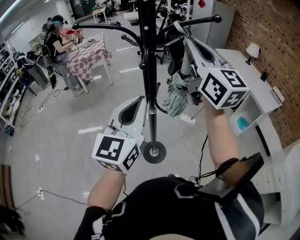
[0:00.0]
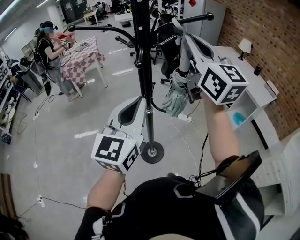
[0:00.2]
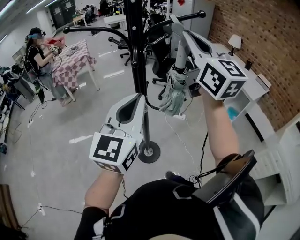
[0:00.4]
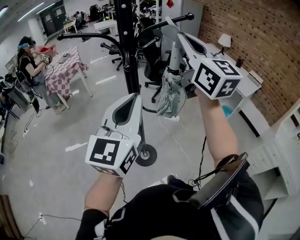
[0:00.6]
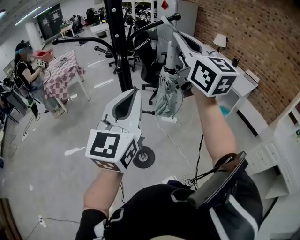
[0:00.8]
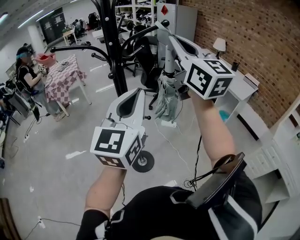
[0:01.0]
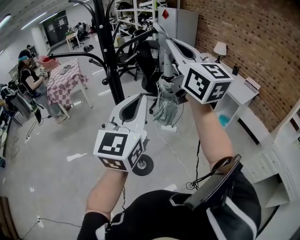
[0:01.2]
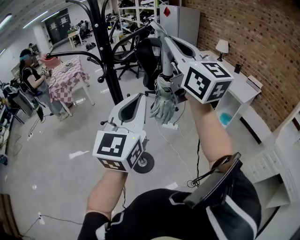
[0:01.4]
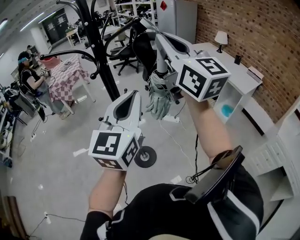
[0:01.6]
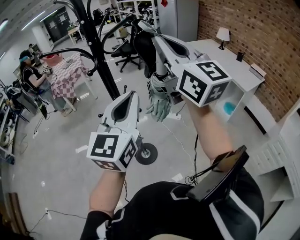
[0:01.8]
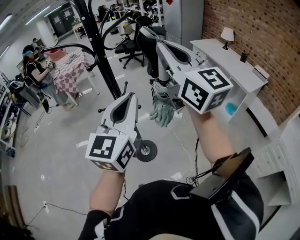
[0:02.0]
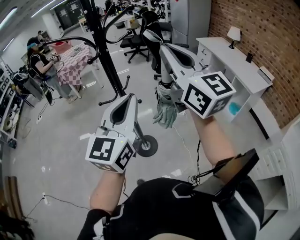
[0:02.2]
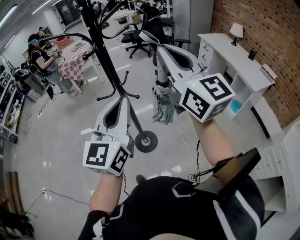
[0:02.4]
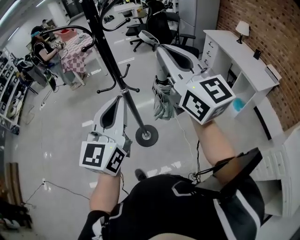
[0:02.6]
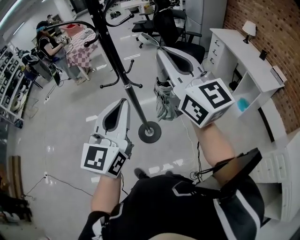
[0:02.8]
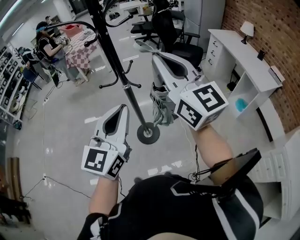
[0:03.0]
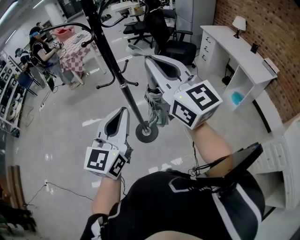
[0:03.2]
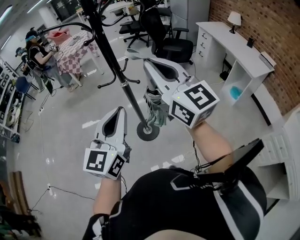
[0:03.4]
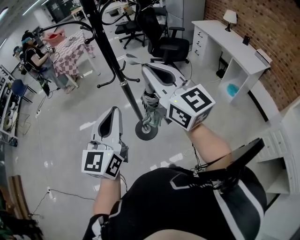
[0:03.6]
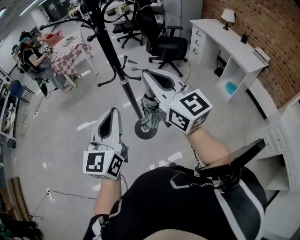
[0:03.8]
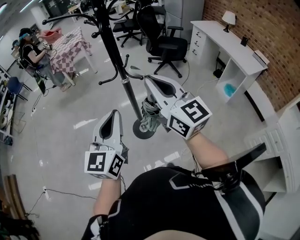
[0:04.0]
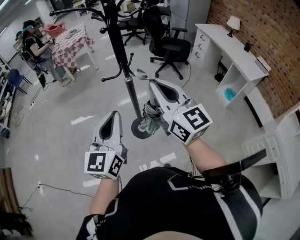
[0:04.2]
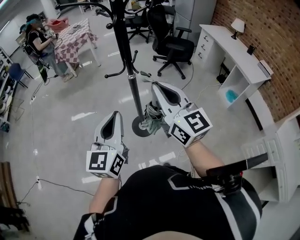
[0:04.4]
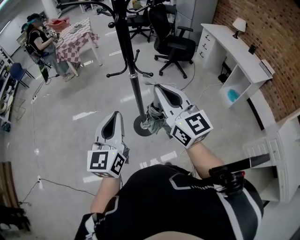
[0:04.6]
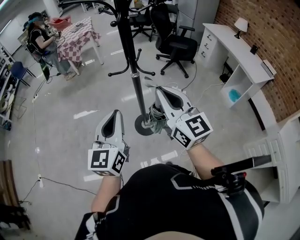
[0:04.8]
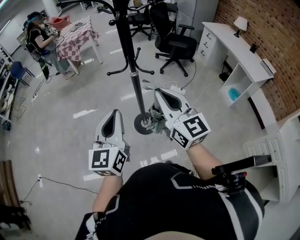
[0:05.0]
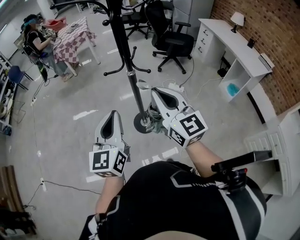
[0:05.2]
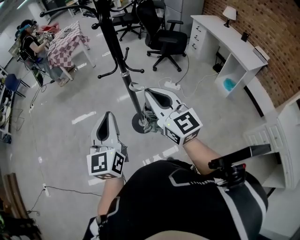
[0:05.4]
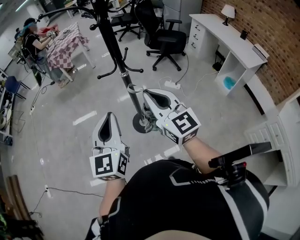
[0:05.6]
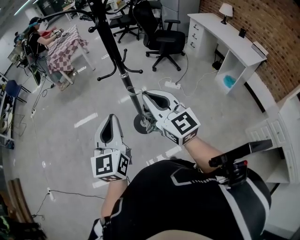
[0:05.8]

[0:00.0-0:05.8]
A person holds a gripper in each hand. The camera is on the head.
0.0 to 1.4 s: The right gripper goes some 15 cm to the right, backward and upward, while the left gripper is displaced to the right by about 15 cm.
1.4 to 2.8 s: The left gripper moves backward and downward, approximately 10 cm, while the right gripper moves downward and backward, roughly 15 cm.
2.8 to 4.4 s: The right gripper is displaced downward and to the left by some 15 cm. The left gripper travels to the left and downward by approximately 15 cm.
4.4 to 5.8 s: The right gripper is displaced downward by roughly 5 cm.

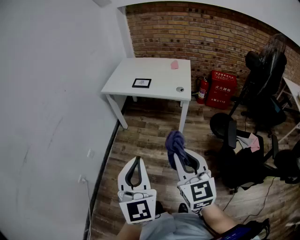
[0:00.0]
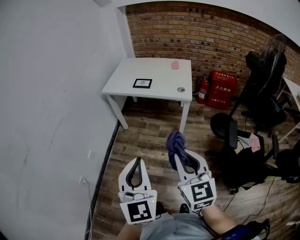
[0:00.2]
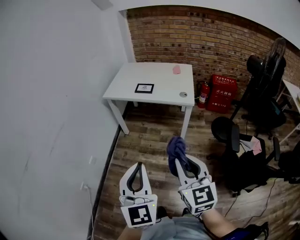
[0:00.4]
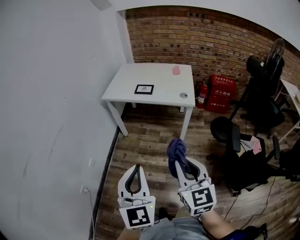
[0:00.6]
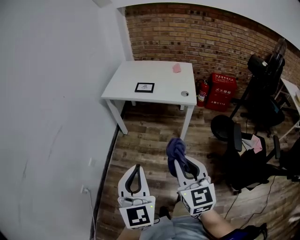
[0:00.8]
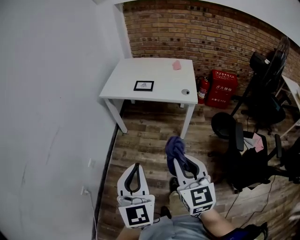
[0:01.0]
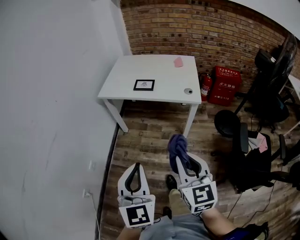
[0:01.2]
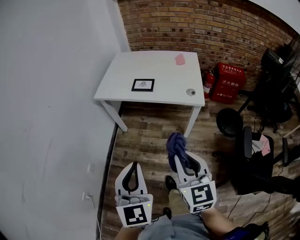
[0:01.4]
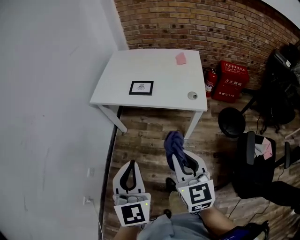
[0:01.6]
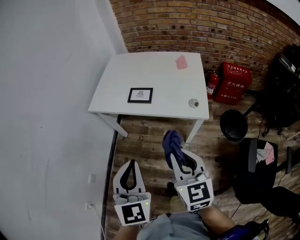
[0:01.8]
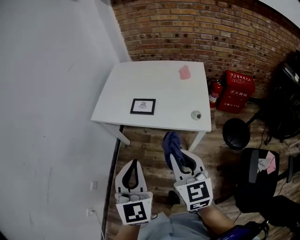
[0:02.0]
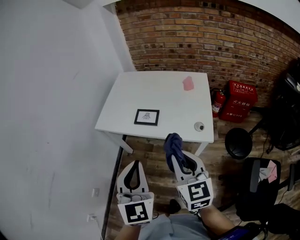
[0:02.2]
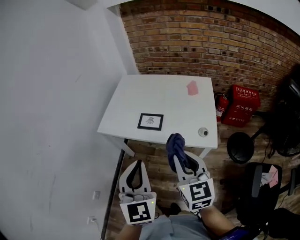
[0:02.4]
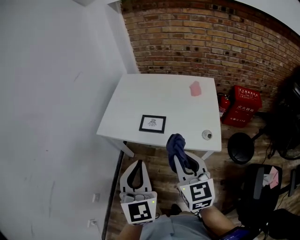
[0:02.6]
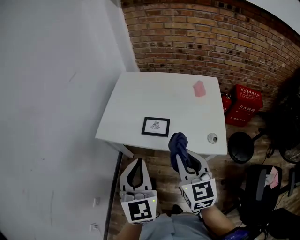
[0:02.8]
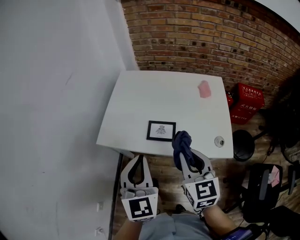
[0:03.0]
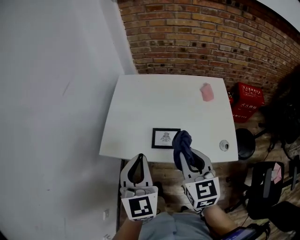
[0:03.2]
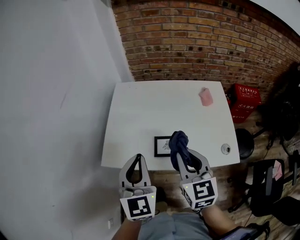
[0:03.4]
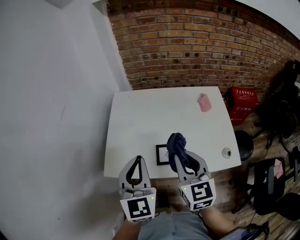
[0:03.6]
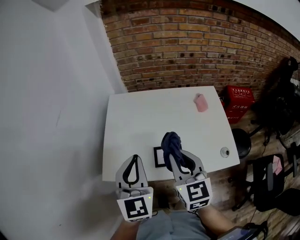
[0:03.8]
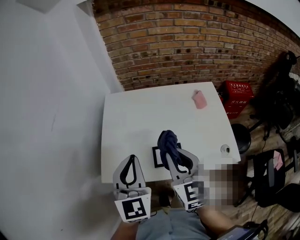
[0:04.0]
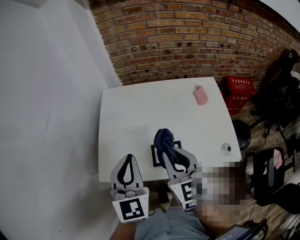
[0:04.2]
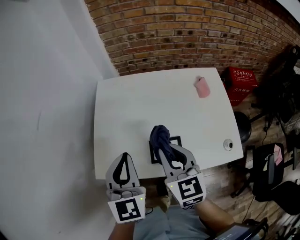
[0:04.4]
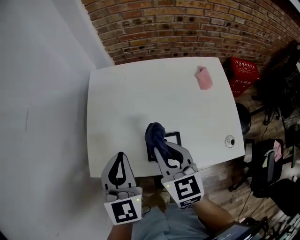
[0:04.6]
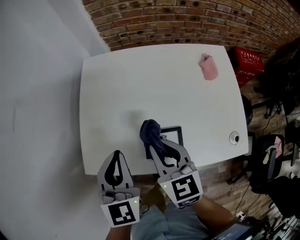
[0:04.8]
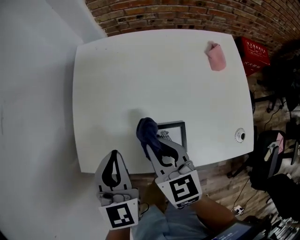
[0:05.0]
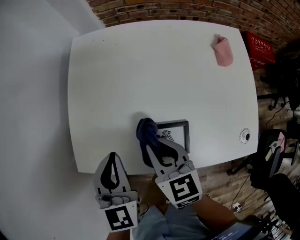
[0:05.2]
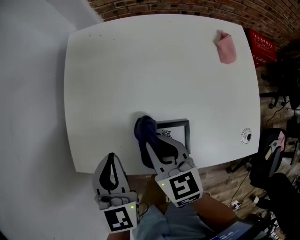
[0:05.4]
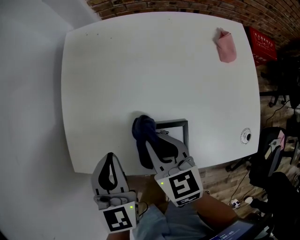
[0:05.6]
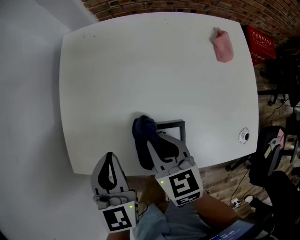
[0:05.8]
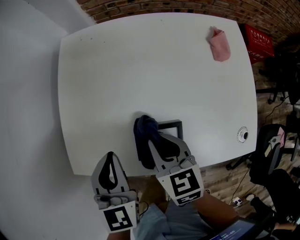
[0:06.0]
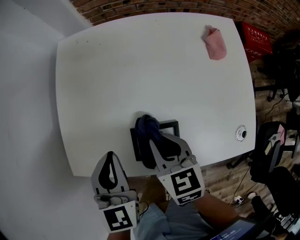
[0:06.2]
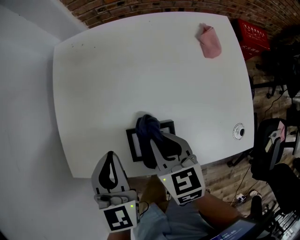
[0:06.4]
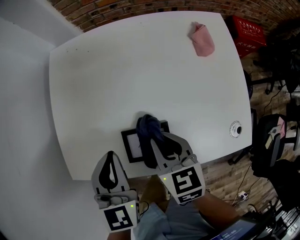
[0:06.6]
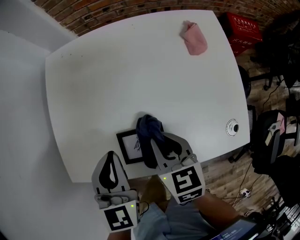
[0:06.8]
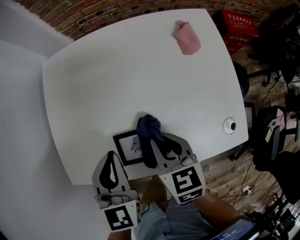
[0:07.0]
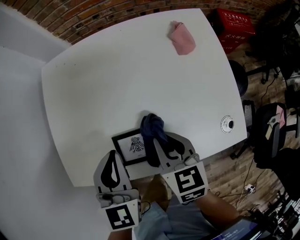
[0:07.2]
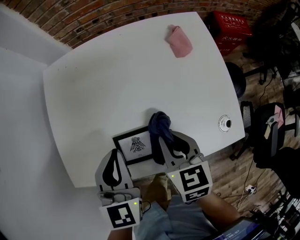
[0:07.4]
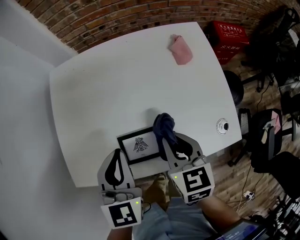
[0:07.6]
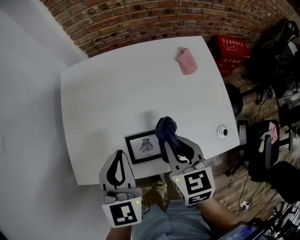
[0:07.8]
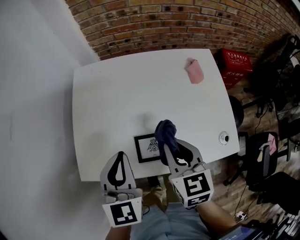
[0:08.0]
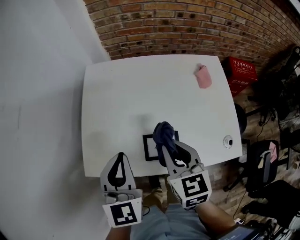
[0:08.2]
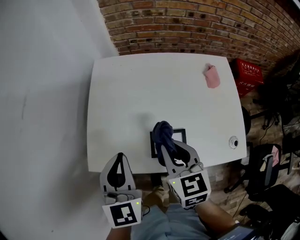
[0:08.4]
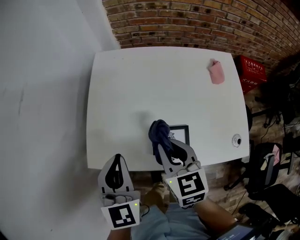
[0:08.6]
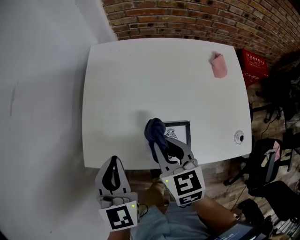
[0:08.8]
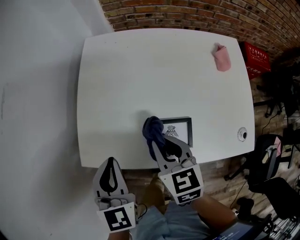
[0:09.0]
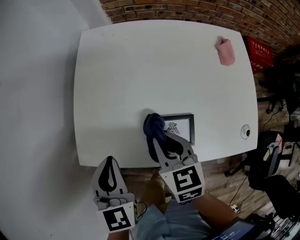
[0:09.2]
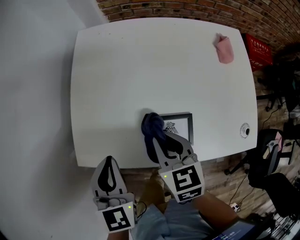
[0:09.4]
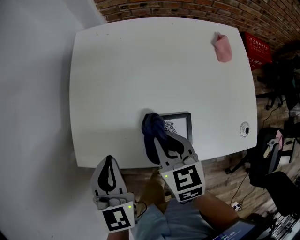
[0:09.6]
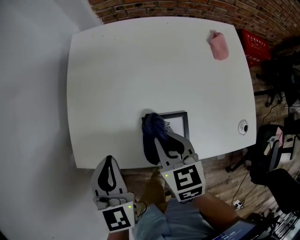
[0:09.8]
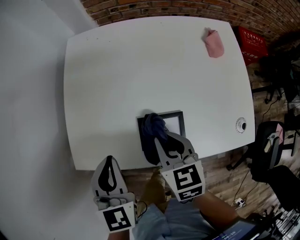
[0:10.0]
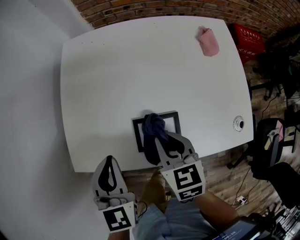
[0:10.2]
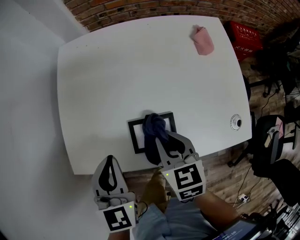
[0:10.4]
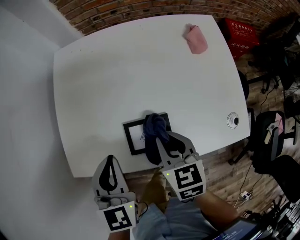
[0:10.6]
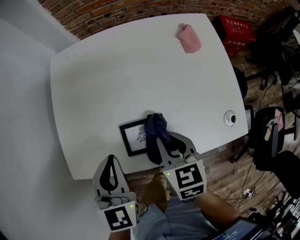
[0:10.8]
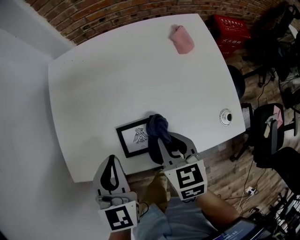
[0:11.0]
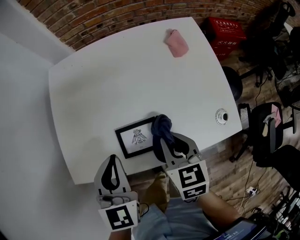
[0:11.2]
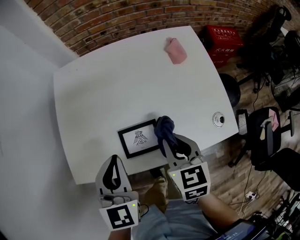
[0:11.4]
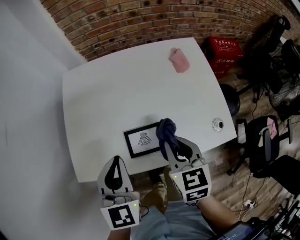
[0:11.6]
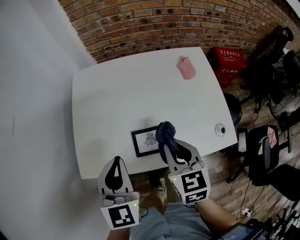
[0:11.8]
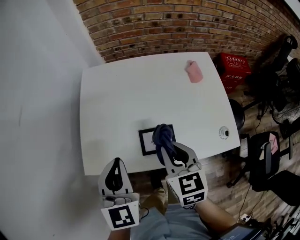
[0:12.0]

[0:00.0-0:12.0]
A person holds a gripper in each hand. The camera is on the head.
0.0 to 1.6 s: Both grippers travel together forward, about 25 cm.
1.6 to 3.0 s: The two grippers go approximately 30 cm forward.
3.0 to 4.4 s: The right gripper moves forward and to the left, approximately 20 cm. The left gripper travels forward by approximately 20 cm.
4.4 to 6.0 s: The two grippers go about 15 cm downward. The right gripper turns by approximately 20 degrees.
6.0 to 7.6 s: Both grippers move to the right, roughly 10 cm.
7.6 to 9.0 s: Both grippers travel together to the left, about 15 cm.
9.0 to 10.4 s: The grippers both shift to the right by approximately 10 cm.
10.4 to 12.0 s: Both grippers travel together upward, roughly 10 cm.

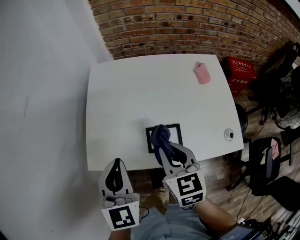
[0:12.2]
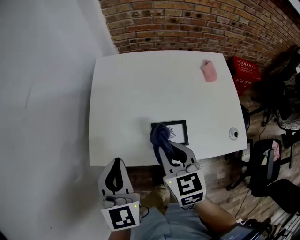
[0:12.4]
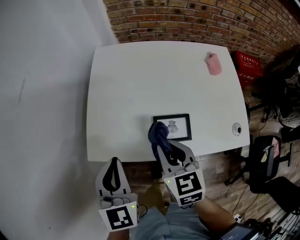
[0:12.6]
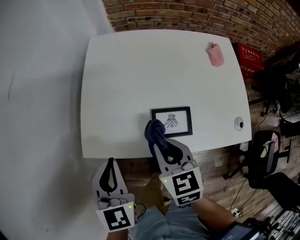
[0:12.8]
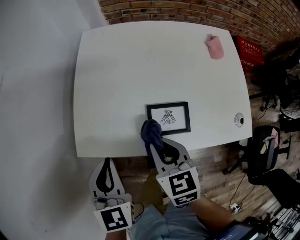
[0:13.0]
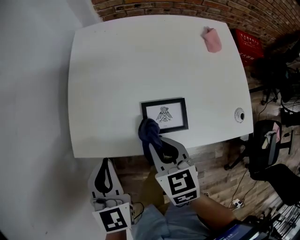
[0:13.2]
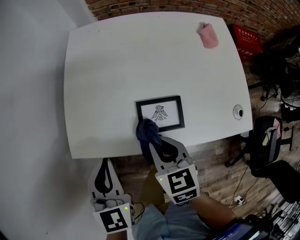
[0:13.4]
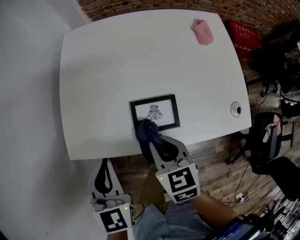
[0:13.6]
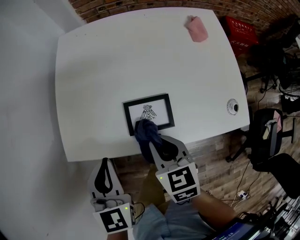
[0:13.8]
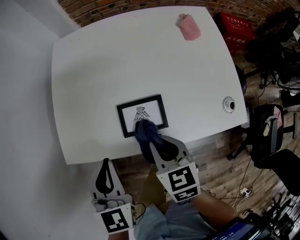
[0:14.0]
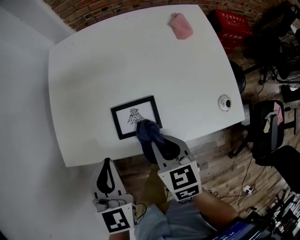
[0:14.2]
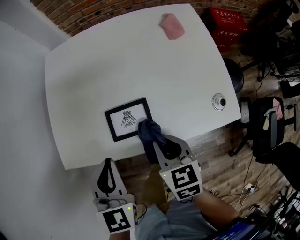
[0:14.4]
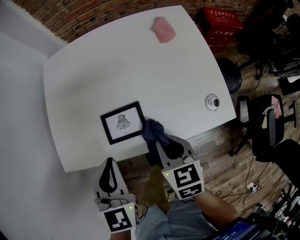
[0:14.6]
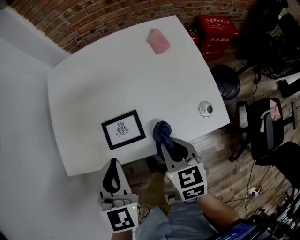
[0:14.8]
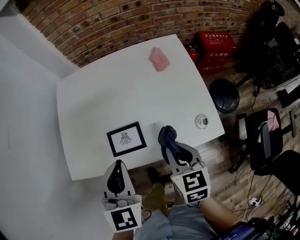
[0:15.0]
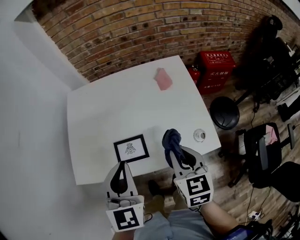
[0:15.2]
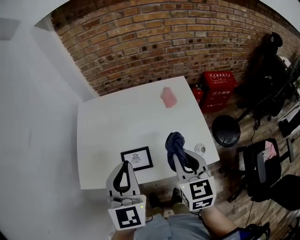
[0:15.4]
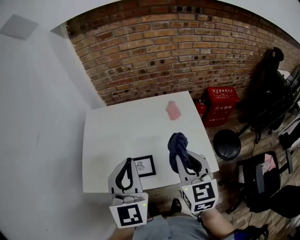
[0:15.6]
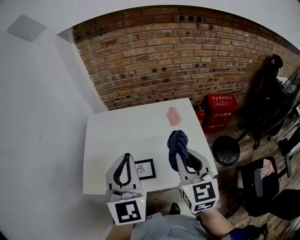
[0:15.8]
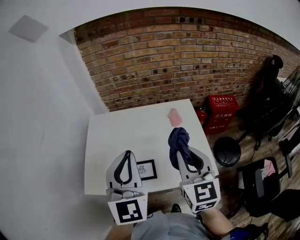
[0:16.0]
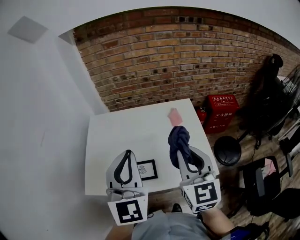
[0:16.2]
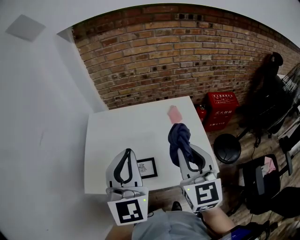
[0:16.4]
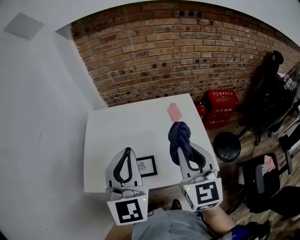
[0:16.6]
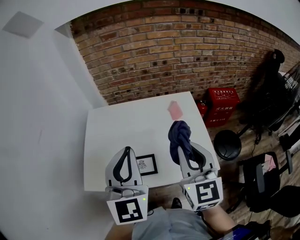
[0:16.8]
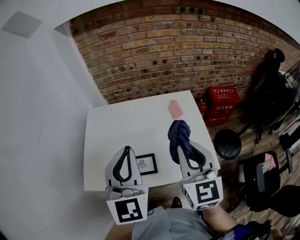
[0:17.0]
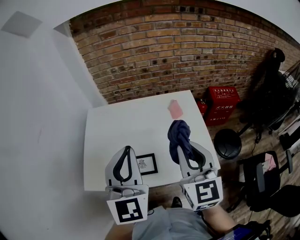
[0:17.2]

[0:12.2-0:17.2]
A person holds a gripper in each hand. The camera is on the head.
12.2 to 13.8 s: Both grippers move downward, some 10 cm.
13.8 to 15.6 s: Both grippers travel together upward and to the right, roughly 30 cm. The left gripper changes its angle by about 30 degrees. The right gripper rotates about 30 degrees.
15.6 to 17.2 s: The right gripper heads upward, covering some 5 cm.

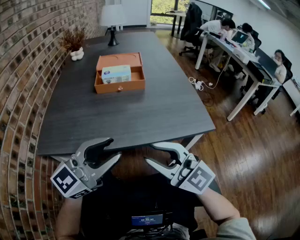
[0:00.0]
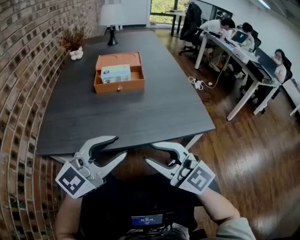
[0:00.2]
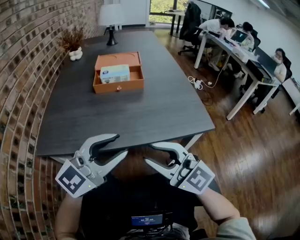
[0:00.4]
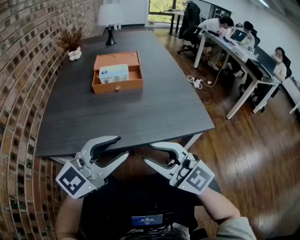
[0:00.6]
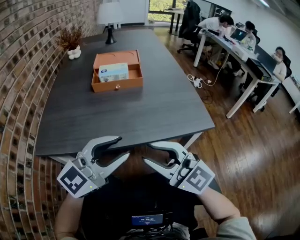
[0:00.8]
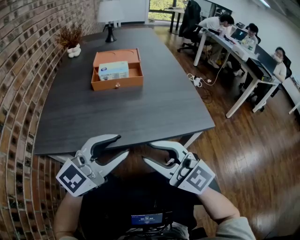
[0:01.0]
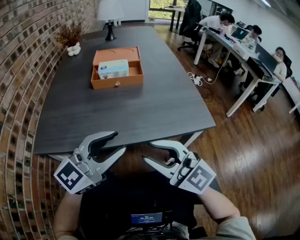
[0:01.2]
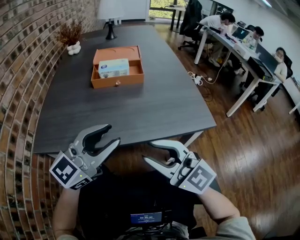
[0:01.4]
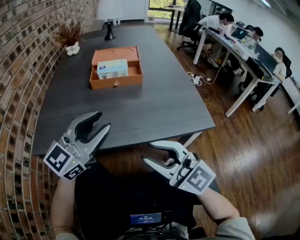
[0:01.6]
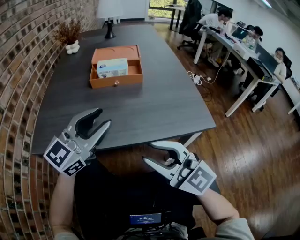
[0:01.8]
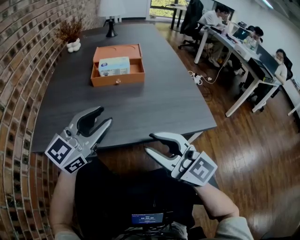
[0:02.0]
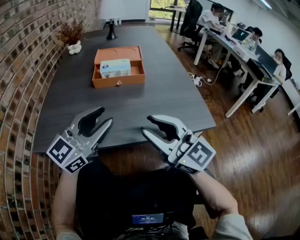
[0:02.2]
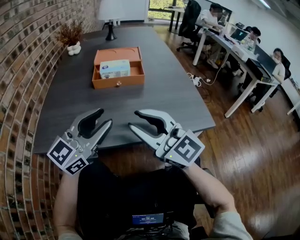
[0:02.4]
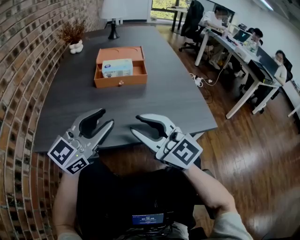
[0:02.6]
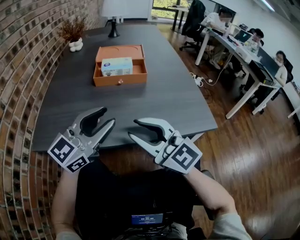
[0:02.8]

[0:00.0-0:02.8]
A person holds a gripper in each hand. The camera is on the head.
0.0 to 1.4 s: The grippers make only small movements.
1.4 to 2.8 s: The two grippers go about 5 cm forward.
